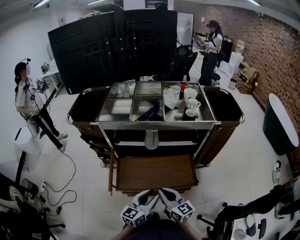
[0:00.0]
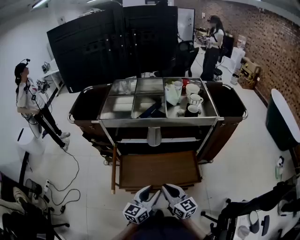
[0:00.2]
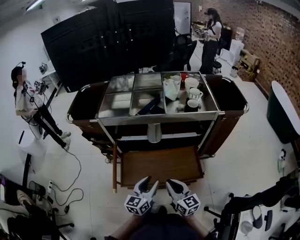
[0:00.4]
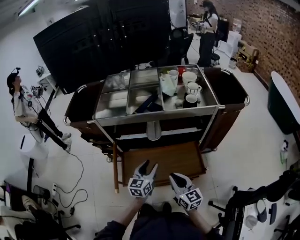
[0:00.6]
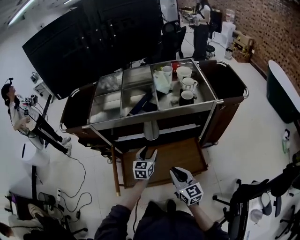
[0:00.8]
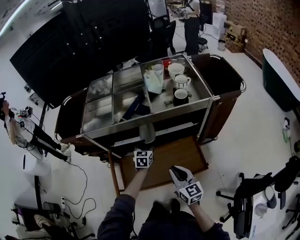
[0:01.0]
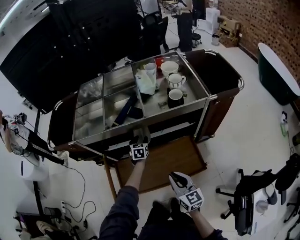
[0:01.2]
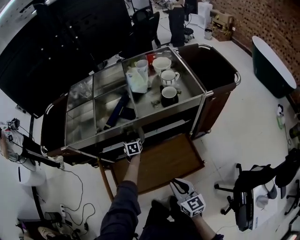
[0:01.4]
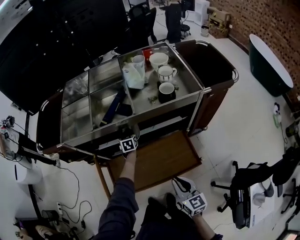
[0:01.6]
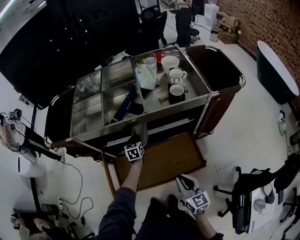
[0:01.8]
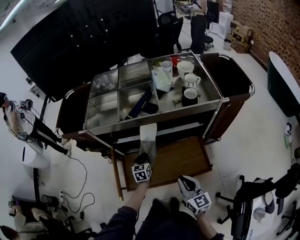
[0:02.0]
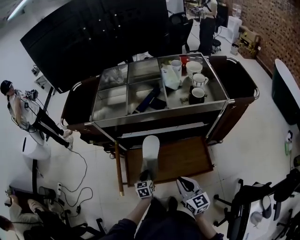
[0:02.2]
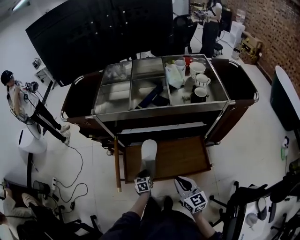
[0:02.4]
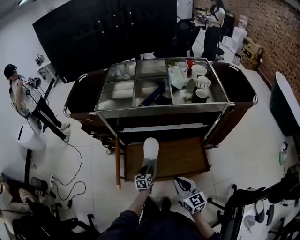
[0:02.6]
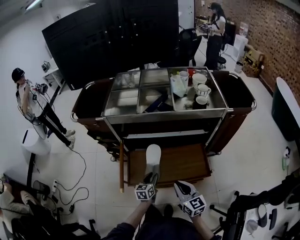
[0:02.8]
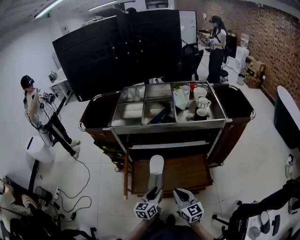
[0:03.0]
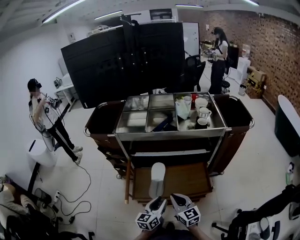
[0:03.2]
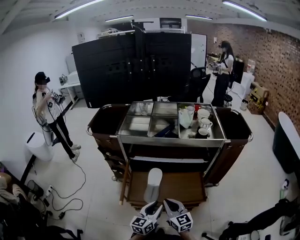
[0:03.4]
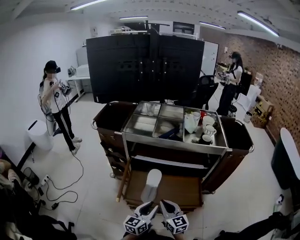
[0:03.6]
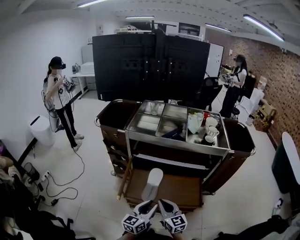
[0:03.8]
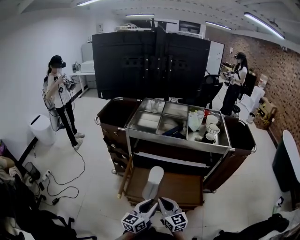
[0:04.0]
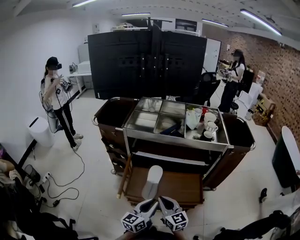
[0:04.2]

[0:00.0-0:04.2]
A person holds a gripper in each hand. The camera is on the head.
0:00.0 to 0:01.4: The left gripper heads forward and downward, covering roughly 50 cm, and points its fingers about 30 degrees further downward. The right gripper moves forward, to the right and downward, approximately 15 cm, and swivels about 20 degrees.
0:01.4 to 0:02.8: The left gripper travels backward by some 30 cm, rotates approximately 20 degrees, and closes and opens again; the right gripper shifts roughly 10 cm to the left and backward.
0:02.8 to 0:04.2: The left gripper heads upward and backward, covering some 25 cm, and turns by roughly 30 degrees, while the right gripper travels to the left by some 5 cm.

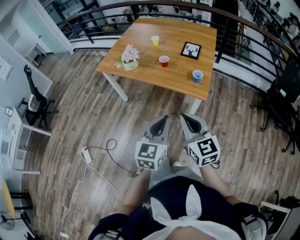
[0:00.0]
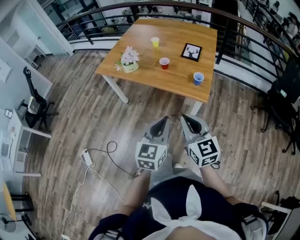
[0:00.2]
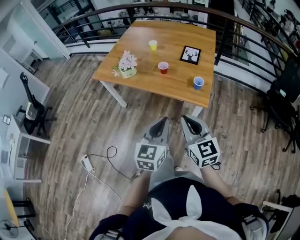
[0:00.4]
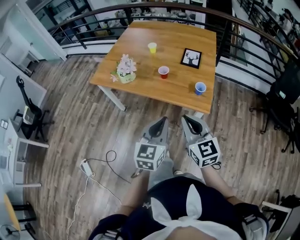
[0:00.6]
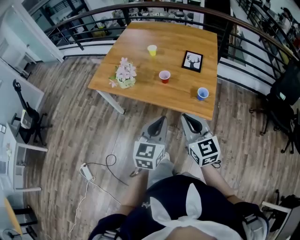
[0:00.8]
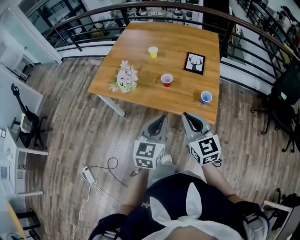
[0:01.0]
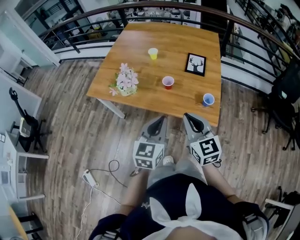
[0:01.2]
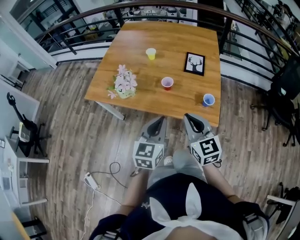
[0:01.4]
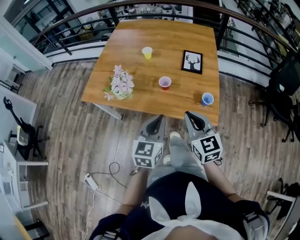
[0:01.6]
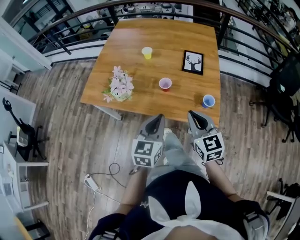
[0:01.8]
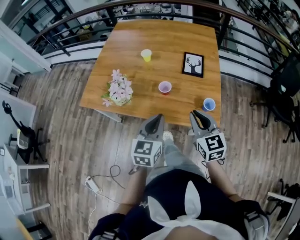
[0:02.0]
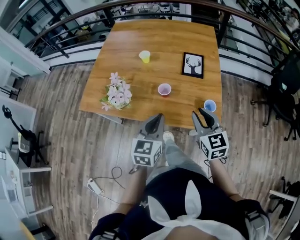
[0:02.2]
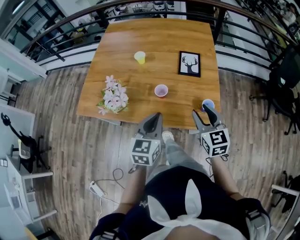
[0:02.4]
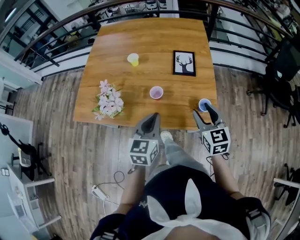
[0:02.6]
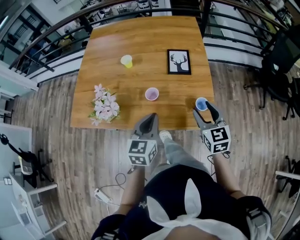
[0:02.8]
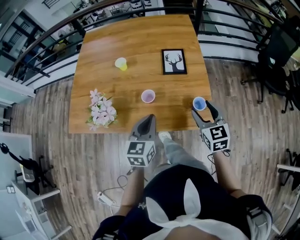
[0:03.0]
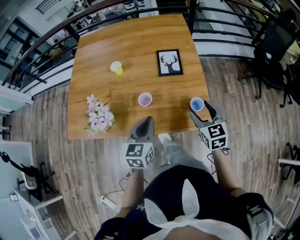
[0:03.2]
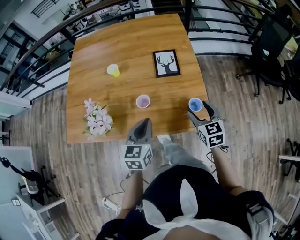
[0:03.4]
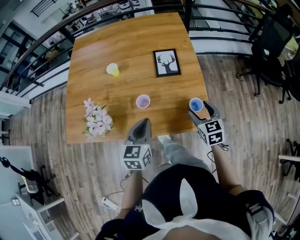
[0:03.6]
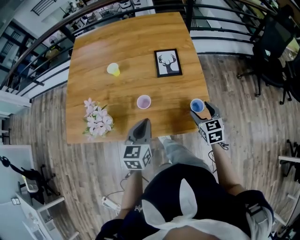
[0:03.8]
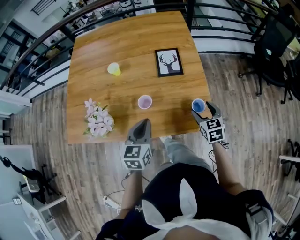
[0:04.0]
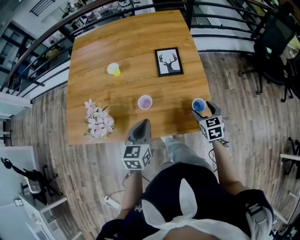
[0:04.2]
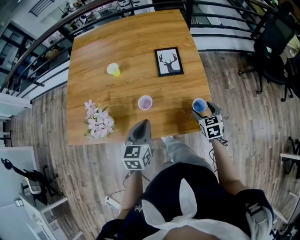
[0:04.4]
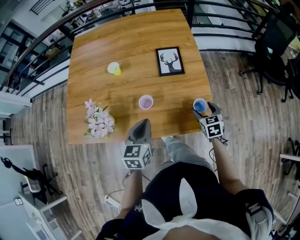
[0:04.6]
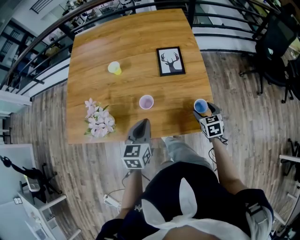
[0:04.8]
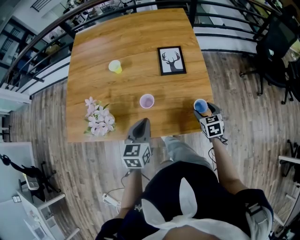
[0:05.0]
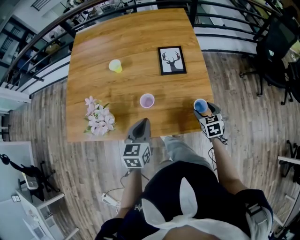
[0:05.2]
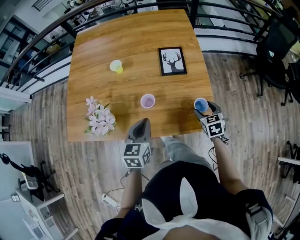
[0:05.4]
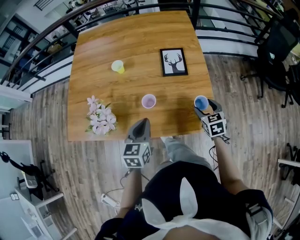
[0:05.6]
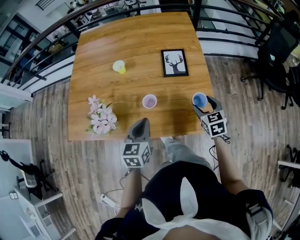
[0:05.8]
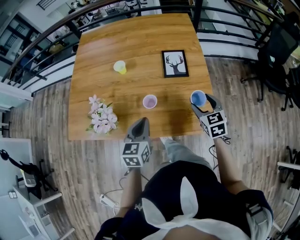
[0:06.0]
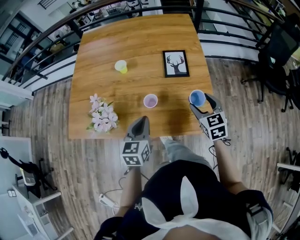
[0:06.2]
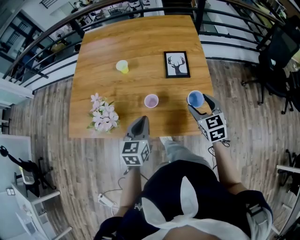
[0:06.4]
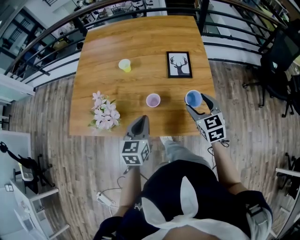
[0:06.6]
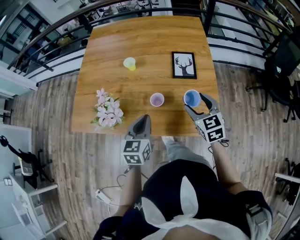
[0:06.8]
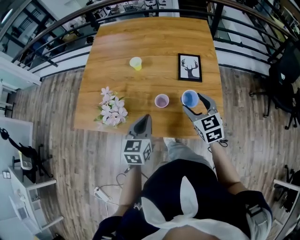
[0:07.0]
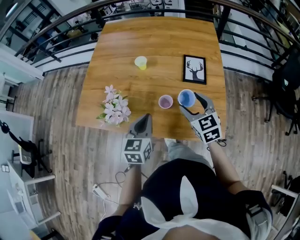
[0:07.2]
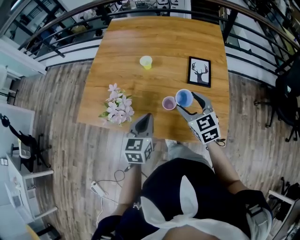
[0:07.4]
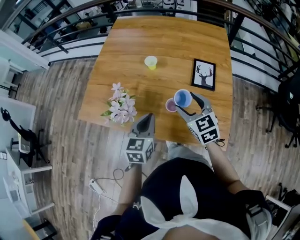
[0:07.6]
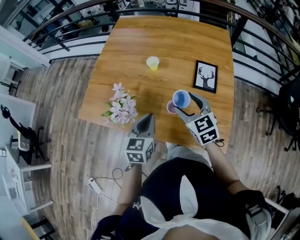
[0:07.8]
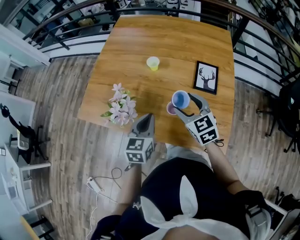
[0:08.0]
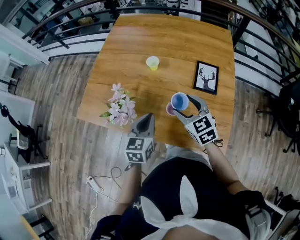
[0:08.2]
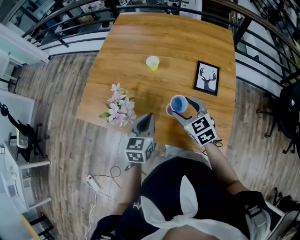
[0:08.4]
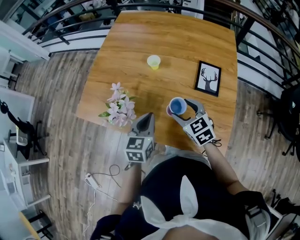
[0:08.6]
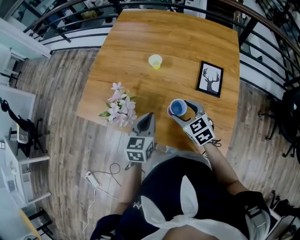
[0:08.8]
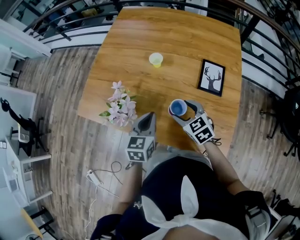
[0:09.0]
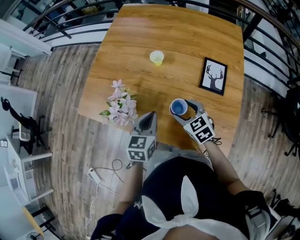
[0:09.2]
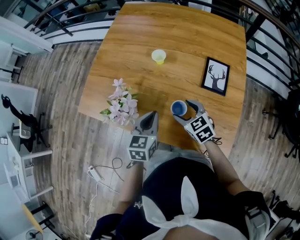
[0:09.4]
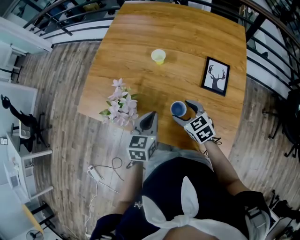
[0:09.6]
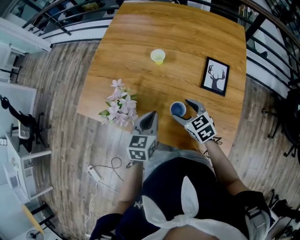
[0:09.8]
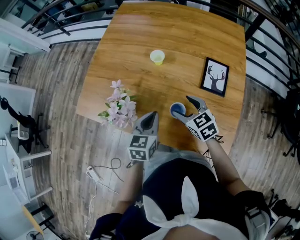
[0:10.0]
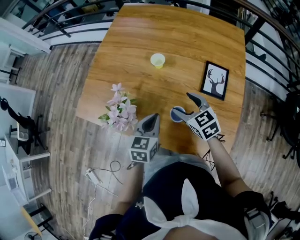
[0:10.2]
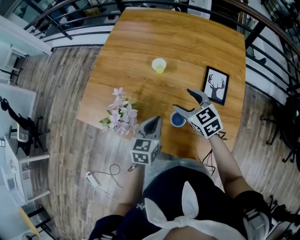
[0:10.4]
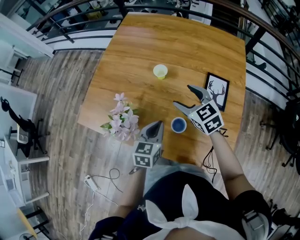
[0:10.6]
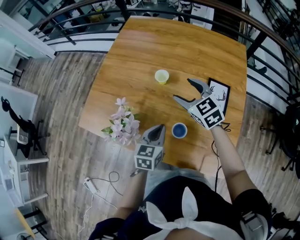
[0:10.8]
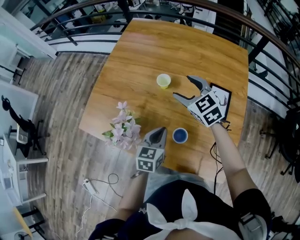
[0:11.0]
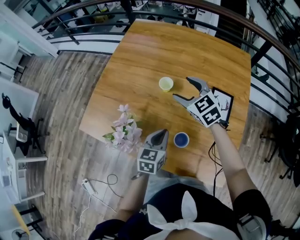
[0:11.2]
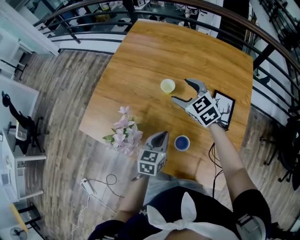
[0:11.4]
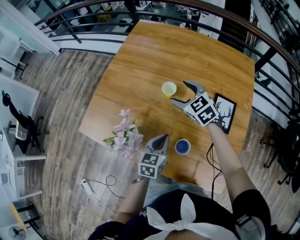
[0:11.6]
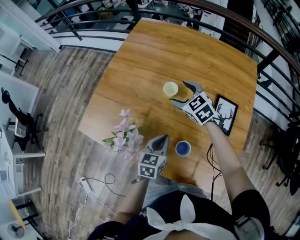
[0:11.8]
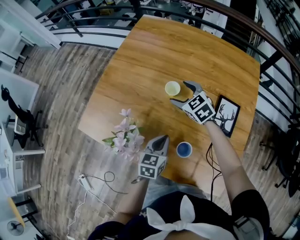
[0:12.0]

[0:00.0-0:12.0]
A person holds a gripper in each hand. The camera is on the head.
0:00.0 to 0:01.6: Both grippers travel together forward, approximately 30 cm.
0:01.6 to 0:03.0: The left gripper goes some 15 cm forward and downward. Meanwhile the right gripper shifts some 20 cm forward, to the right and downward, swivels approximately 20 degrees, and opens up.
0:03.0 to 0:04.4: The right gripper heads downward, covering roughly 15 cm. The left gripper changes place by some 5 cm.
0:04.4 to 0:06.0: The right gripper goes roughly 10 cm upward.
0:06.0 to 0:07.6: The right gripper moves to the left, roughly 20 cm, and turns by approximately 30 degrees, while the left gripper heads to the left, covering approximately 5 cm.
0:07.6 to 0:09.0: The left gripper moves approximately 5 cm, while the right gripper is displaced downward by some 10 cm.
0:09.0 to 0:10.4: The right gripper goes roughly 10 cm forward.
0:10.4 to 0:12.0: The left gripper heads forward and downward, covering about 10 cm. Meanwhile the right gripper travels forward by some 20 cm.

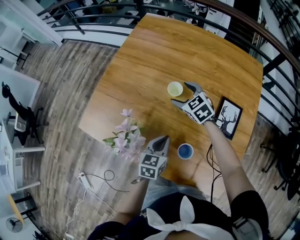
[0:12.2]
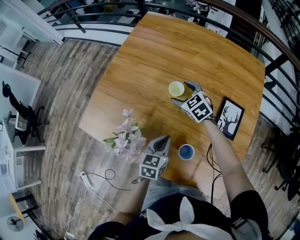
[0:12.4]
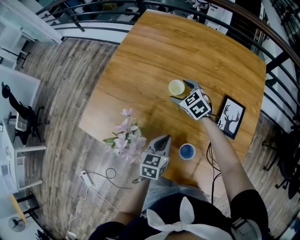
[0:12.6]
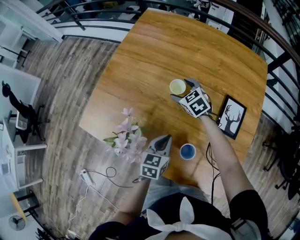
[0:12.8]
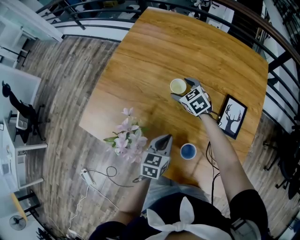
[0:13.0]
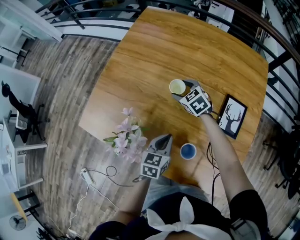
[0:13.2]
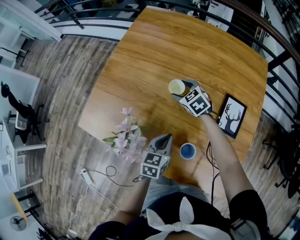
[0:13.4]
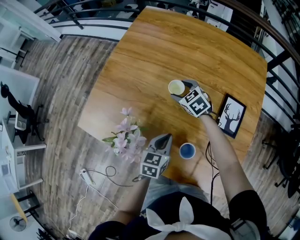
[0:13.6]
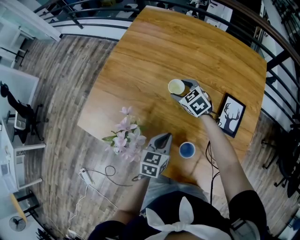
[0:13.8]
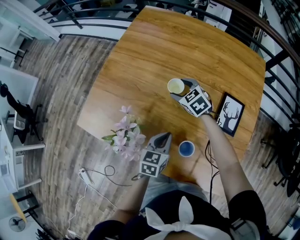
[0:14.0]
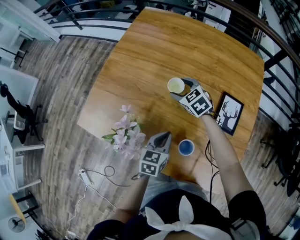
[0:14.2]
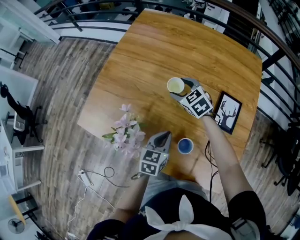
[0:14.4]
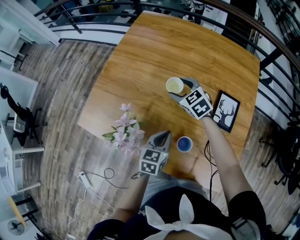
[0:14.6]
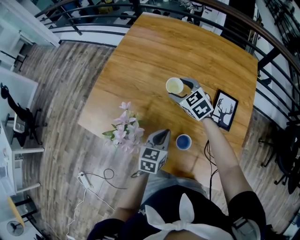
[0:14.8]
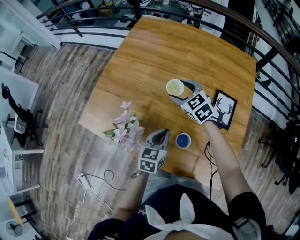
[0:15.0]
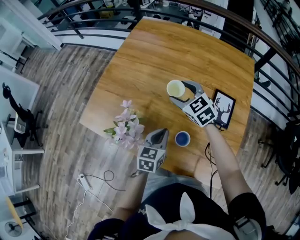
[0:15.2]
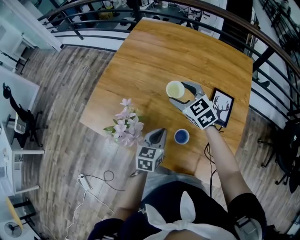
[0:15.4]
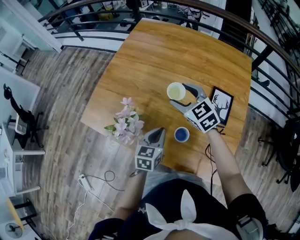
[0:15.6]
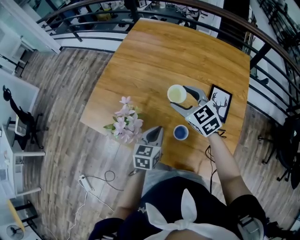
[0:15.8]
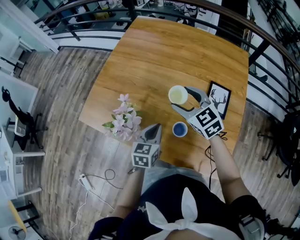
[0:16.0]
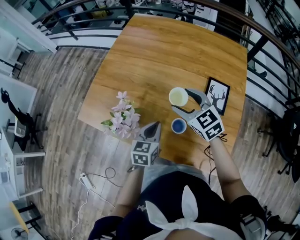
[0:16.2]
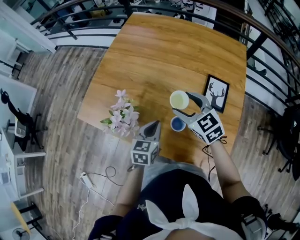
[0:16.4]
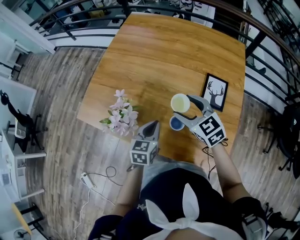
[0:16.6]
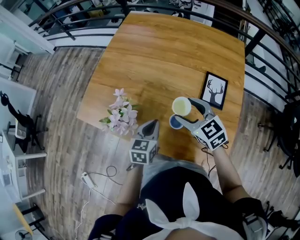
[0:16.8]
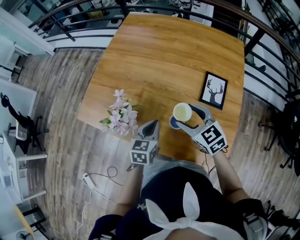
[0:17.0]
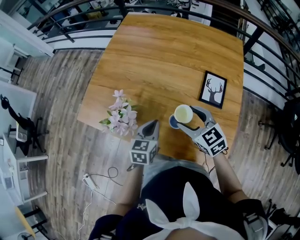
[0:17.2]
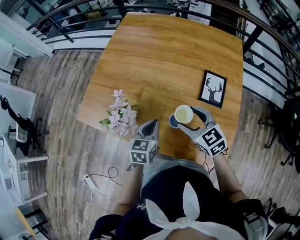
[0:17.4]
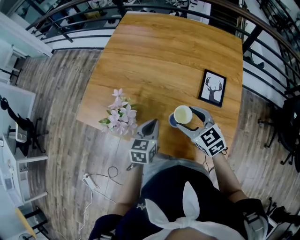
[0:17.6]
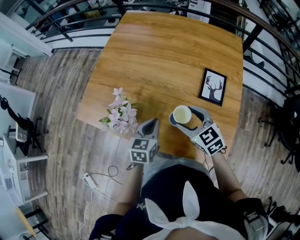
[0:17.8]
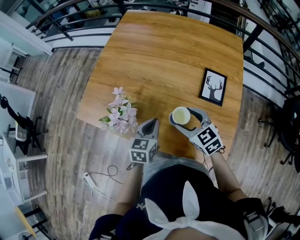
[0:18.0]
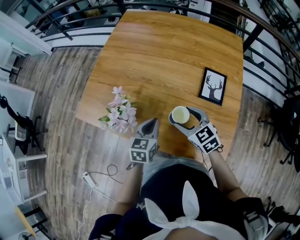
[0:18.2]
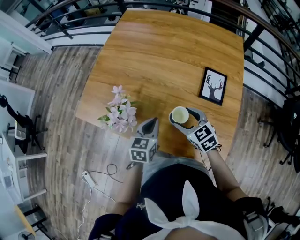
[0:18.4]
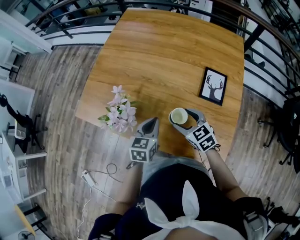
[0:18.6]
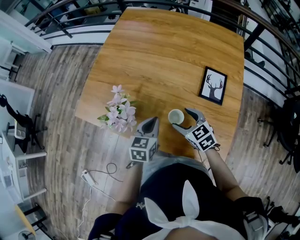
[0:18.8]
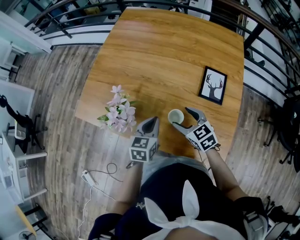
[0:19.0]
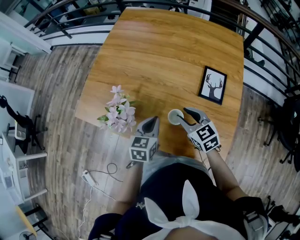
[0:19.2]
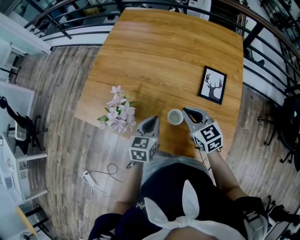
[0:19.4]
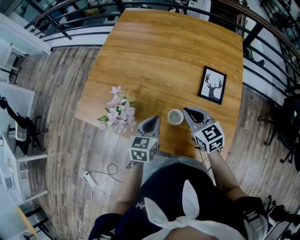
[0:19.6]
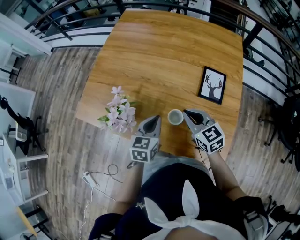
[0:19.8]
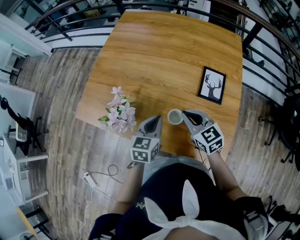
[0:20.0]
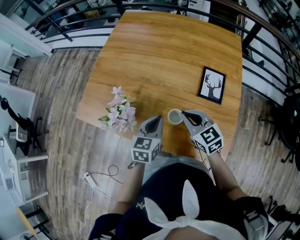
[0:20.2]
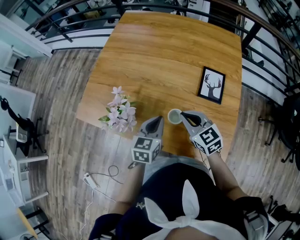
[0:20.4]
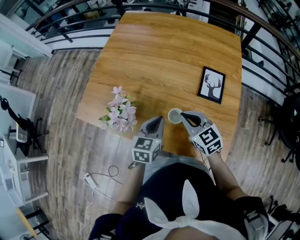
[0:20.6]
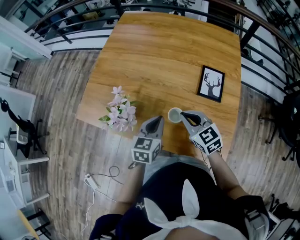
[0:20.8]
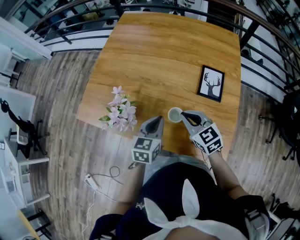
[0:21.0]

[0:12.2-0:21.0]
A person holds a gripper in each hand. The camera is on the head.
0:12.2 to 0:13.6: The right gripper shifts roughly 5 cm downward.
0:13.6 to 0:15.2: The right gripper shifts about 15 cm upward and backward; the left gripper ends up roughly 5 cm from where it was.
0:15.2 to 0:16.6: The right gripper heads backward, covering some 15 cm.
0:16.6 to 0:18.0: The right gripper goes roughly 10 cm backward and downward.
0:18.0 to 0:19.6: The right gripper closes its fingers.
0:19.6 to 0:21.0: The grippers move only a little.
